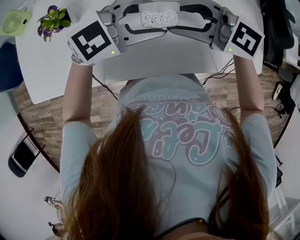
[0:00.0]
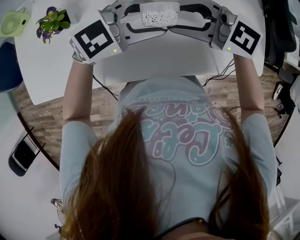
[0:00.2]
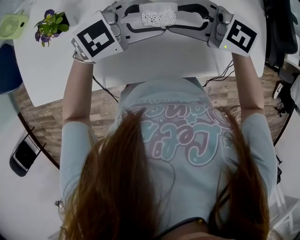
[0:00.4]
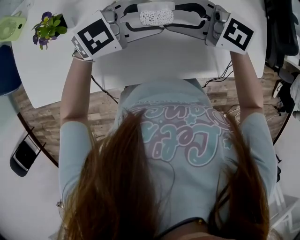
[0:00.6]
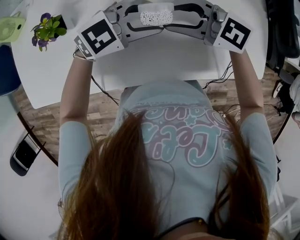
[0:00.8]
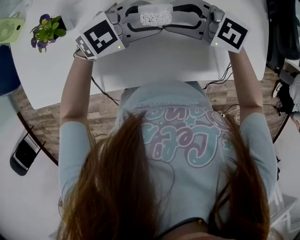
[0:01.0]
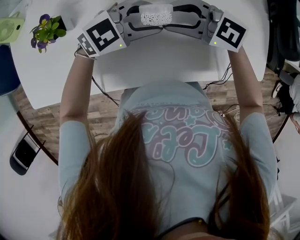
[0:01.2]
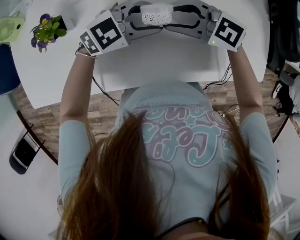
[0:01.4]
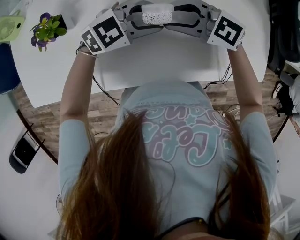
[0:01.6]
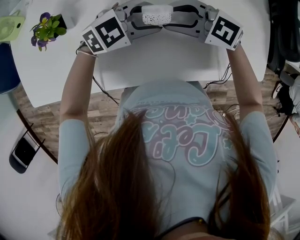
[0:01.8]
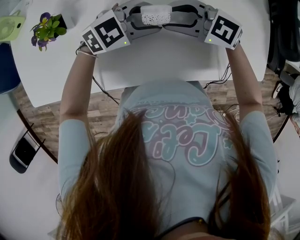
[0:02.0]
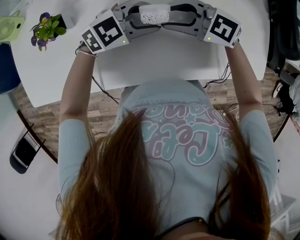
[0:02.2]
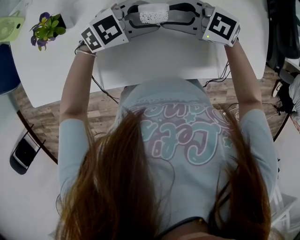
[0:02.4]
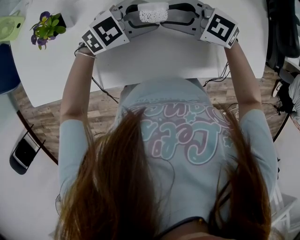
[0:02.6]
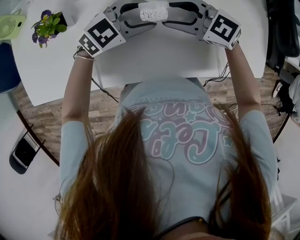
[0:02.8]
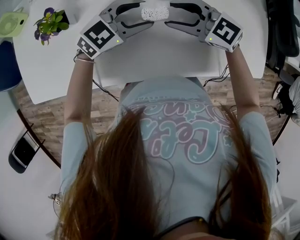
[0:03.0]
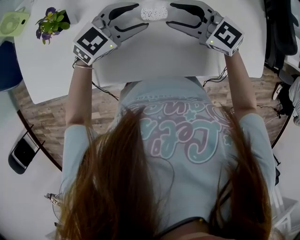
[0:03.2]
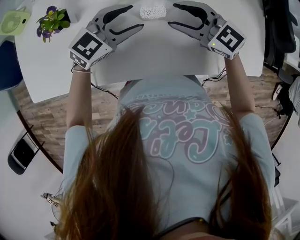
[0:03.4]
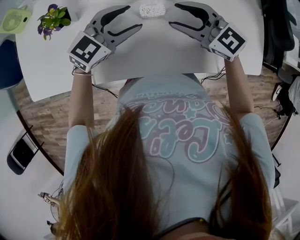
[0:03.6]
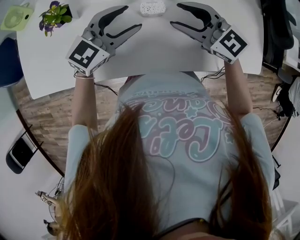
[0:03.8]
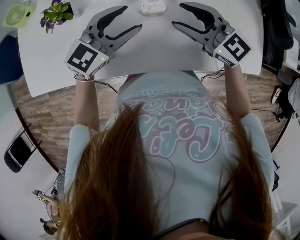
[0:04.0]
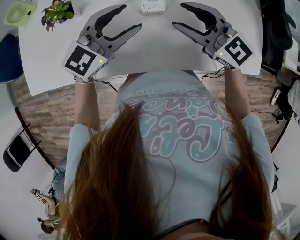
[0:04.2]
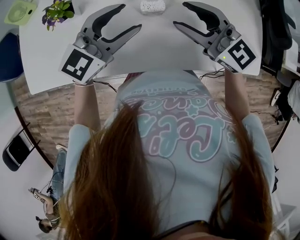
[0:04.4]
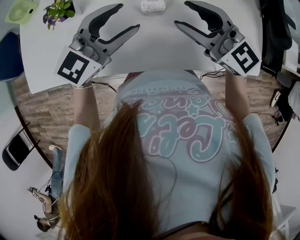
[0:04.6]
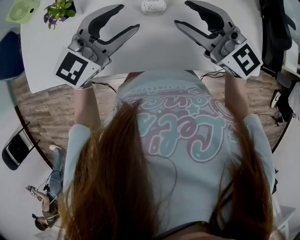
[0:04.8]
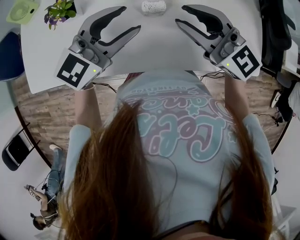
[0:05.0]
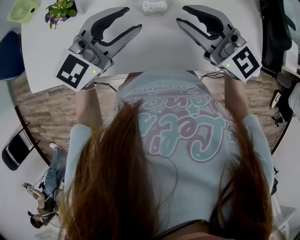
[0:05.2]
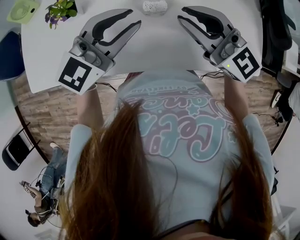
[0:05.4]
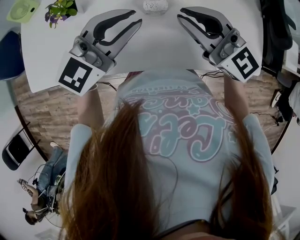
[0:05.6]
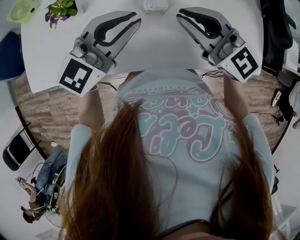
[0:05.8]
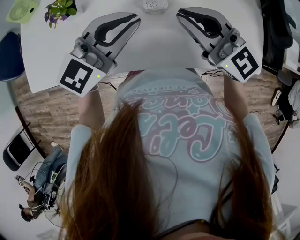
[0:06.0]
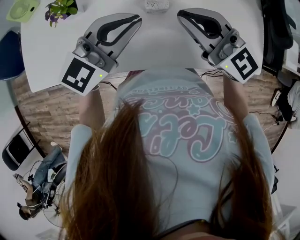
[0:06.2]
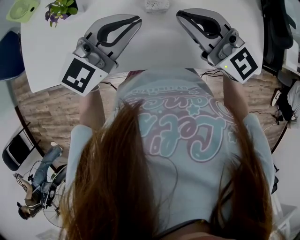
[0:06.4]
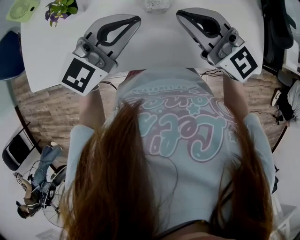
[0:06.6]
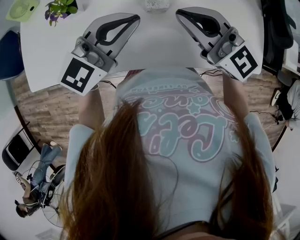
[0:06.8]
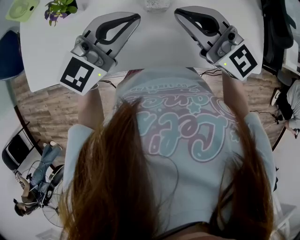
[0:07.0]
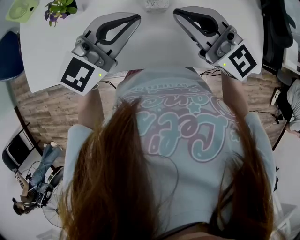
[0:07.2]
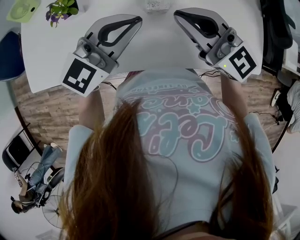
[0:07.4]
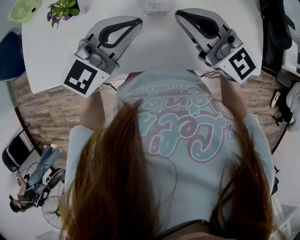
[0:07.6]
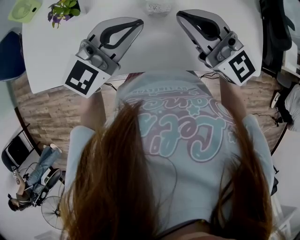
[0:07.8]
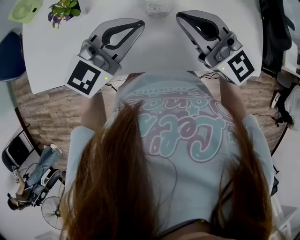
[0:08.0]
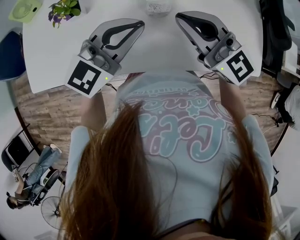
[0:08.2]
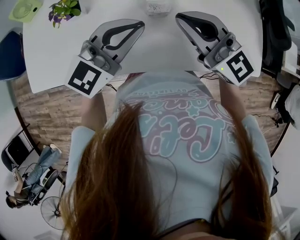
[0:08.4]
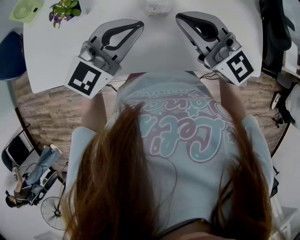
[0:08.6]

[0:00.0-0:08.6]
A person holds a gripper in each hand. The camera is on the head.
0:00.0 to 0:01.4: The two grippers go about 5 cm downward.
0:01.4 to 0:02.8: The grippers make only small movements.
0:02.8 to 0:04.4: The two grippers go about 10 cm upward. The left gripper swivels some 30 degrees. The right gripper rotates some 20 degrees.
0:04.4 to 0:05.8: The left gripper closes its fingers. Meanwhile the right gripper closes up.
0:05.8 to 0:07.2: The two grippers keep their place.
0:07.2 to 0:08.6: Both grippers stay about where they are.

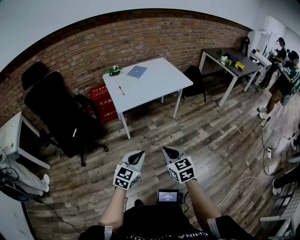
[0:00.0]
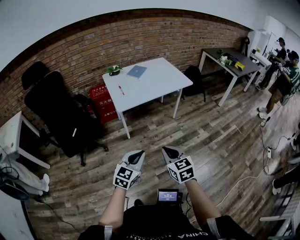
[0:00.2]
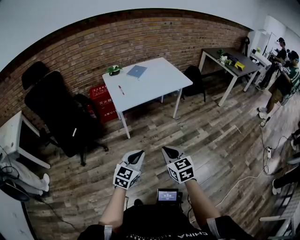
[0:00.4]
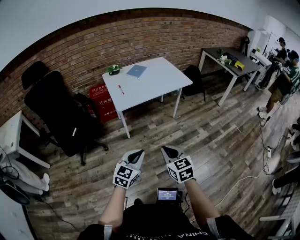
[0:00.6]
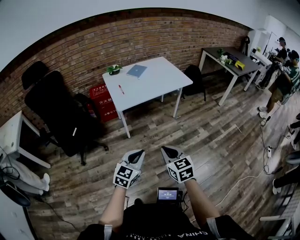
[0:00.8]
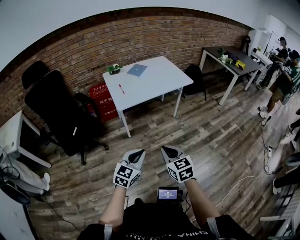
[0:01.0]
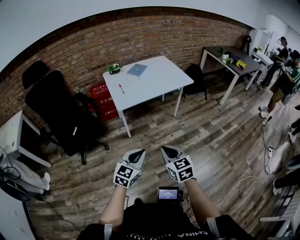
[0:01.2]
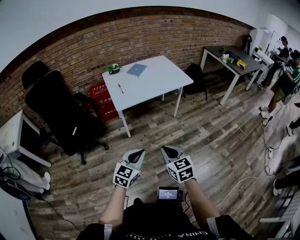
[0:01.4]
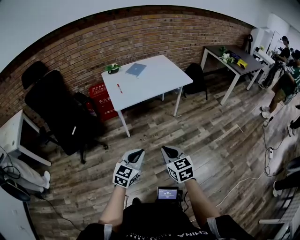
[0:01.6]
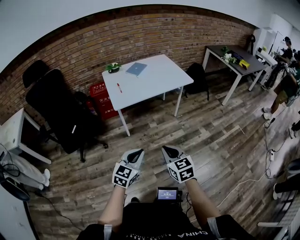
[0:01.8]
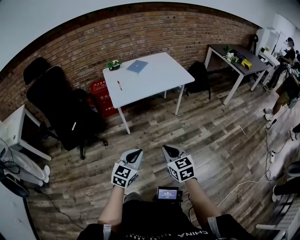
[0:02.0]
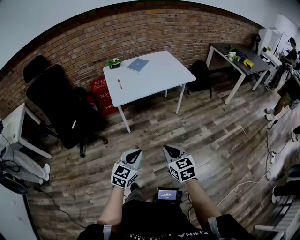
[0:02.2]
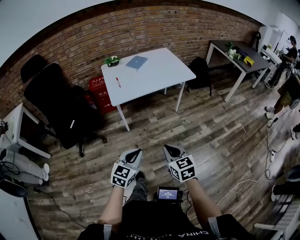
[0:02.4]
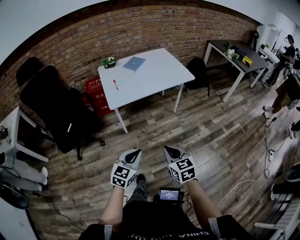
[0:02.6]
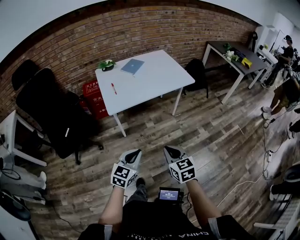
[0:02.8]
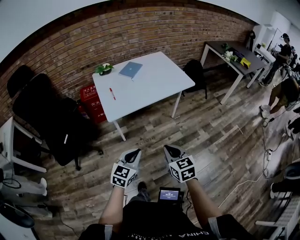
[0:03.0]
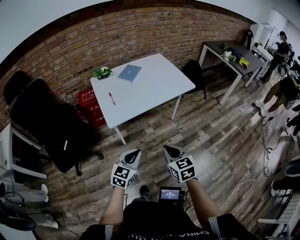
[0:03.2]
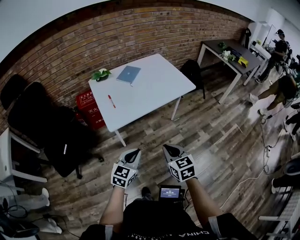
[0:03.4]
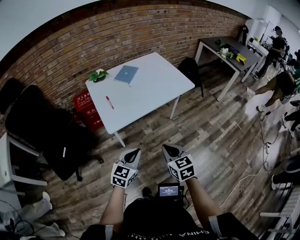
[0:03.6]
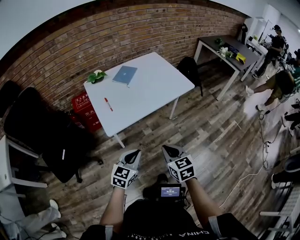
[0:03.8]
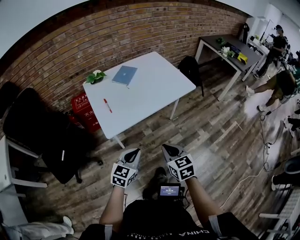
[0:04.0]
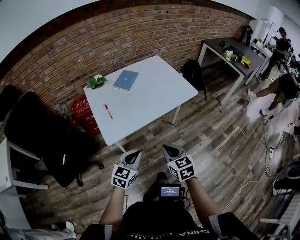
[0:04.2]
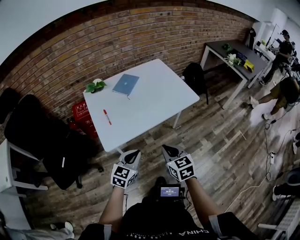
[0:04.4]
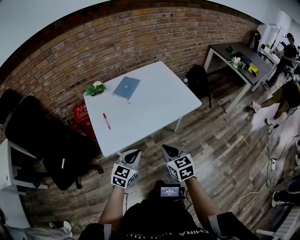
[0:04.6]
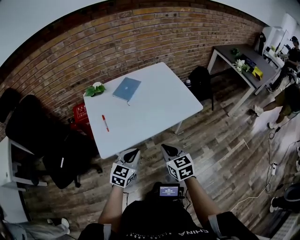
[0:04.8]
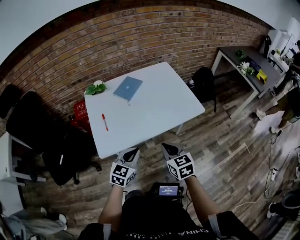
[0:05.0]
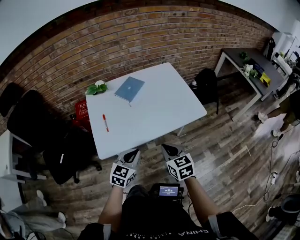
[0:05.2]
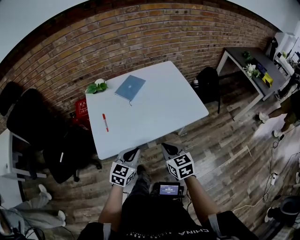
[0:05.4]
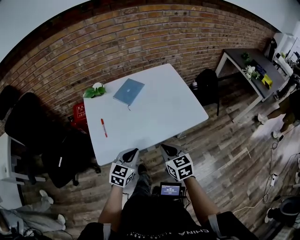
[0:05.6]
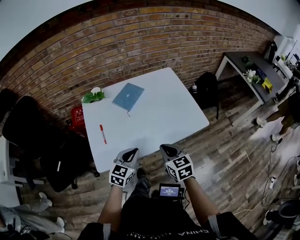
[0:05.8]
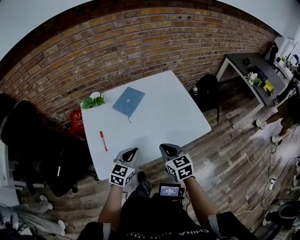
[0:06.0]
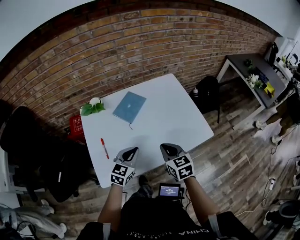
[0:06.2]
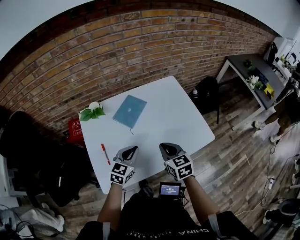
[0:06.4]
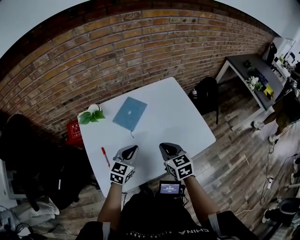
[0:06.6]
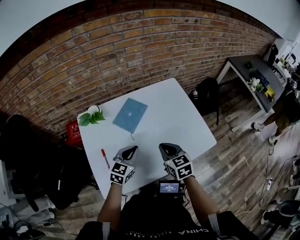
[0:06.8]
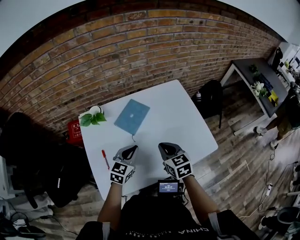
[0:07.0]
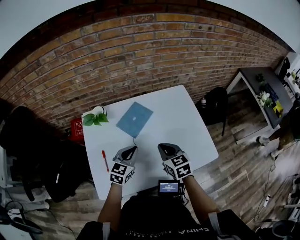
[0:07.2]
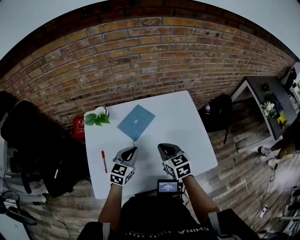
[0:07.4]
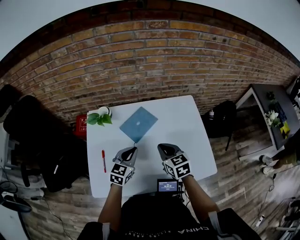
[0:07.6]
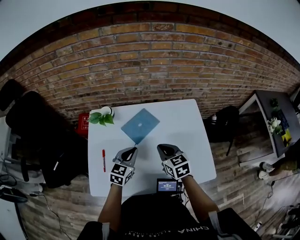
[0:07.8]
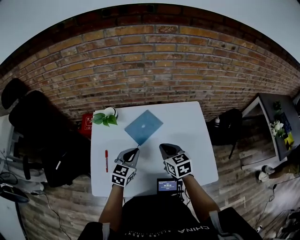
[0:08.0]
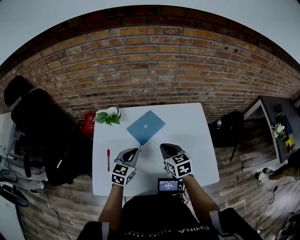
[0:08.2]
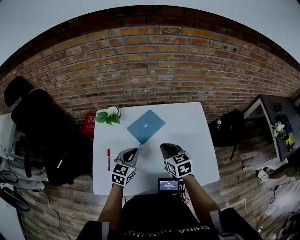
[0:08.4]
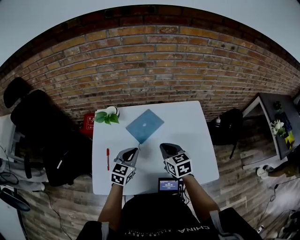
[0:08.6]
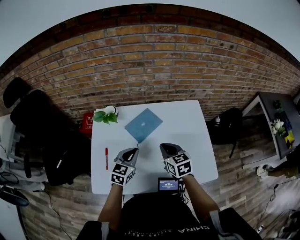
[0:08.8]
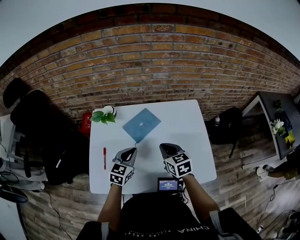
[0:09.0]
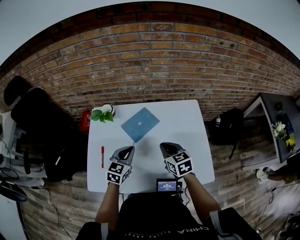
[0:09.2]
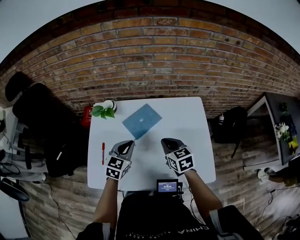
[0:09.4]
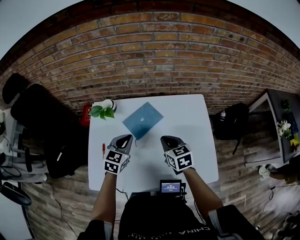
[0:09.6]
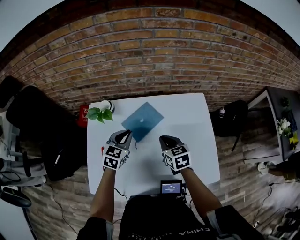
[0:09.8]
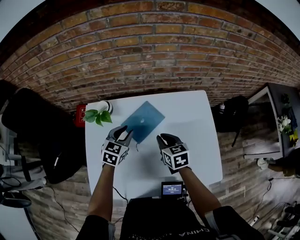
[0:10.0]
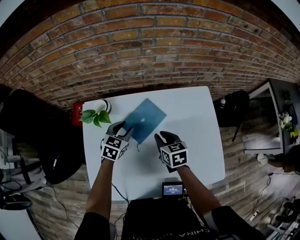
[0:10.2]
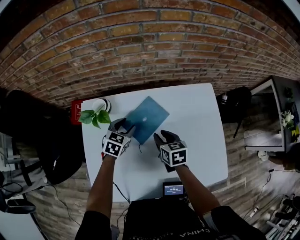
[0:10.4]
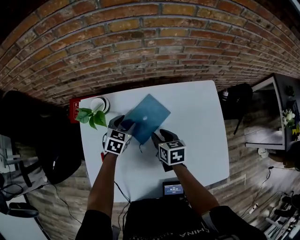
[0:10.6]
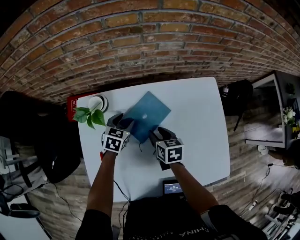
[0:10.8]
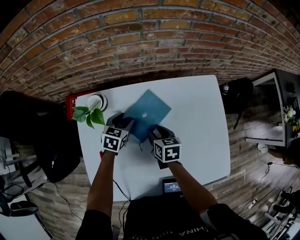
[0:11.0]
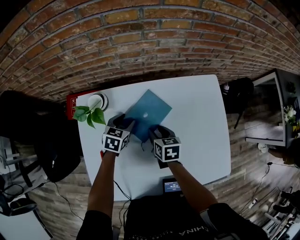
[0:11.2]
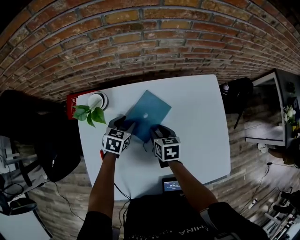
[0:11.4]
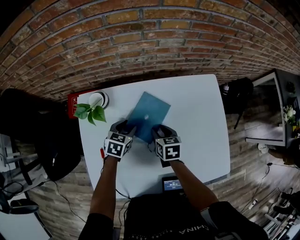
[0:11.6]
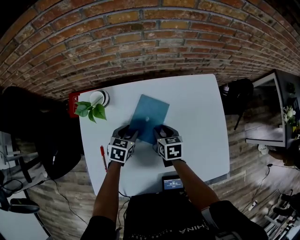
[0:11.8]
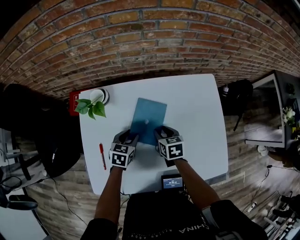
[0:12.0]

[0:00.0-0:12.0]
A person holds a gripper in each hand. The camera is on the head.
0:00.0 to 0:01.6: The grippers make only small movements.
0:01.6 to 0:03.0: Both grippers move forward, roughly 15 cm.
0:03.0 to 0:04.4: Both grippers travel together forward, roughly 20 cm.
0:04.4 to 0:06.0: Both grippers travel together forward, roughly 25 cm.
0:06.0 to 0:07.6: The two grippers go roughly 20 cm forward.
0:07.6 to 0:09.0: The grippers stay close to where they were, moving slightly.
0:09.0 to 0:10.4: The grippers both shift forward and downward by approximately 20 cm. The right gripper swivels approximately 20 degrees, and opens. Meanwhile the left gripper opens up.
0:10.4 to 0:12.0: The right gripper shifts by about 5 cm, while the left gripper moves backward, about 10 cm.

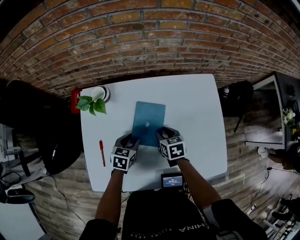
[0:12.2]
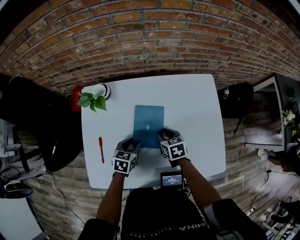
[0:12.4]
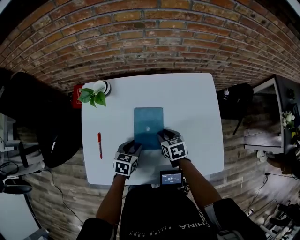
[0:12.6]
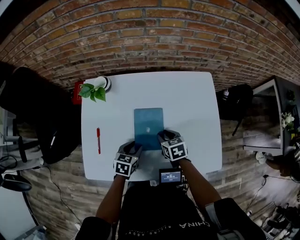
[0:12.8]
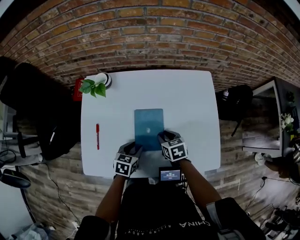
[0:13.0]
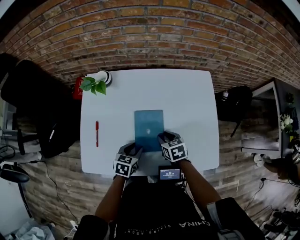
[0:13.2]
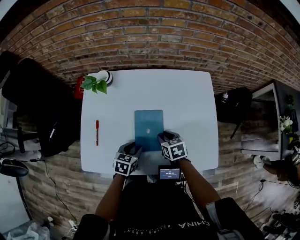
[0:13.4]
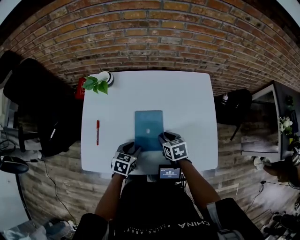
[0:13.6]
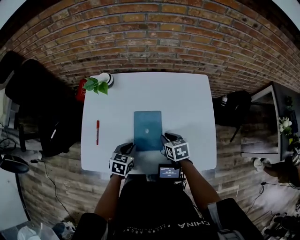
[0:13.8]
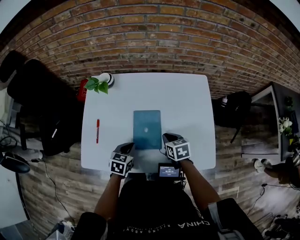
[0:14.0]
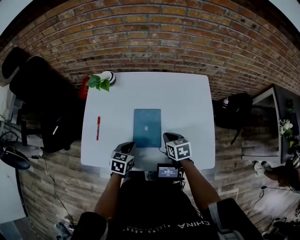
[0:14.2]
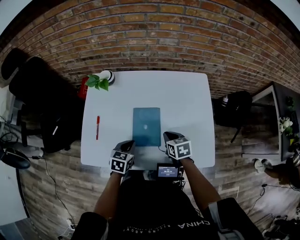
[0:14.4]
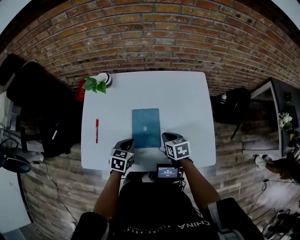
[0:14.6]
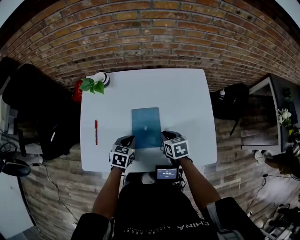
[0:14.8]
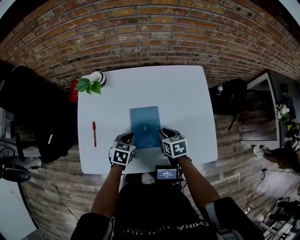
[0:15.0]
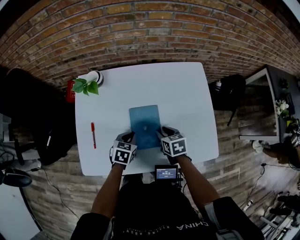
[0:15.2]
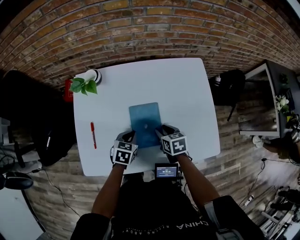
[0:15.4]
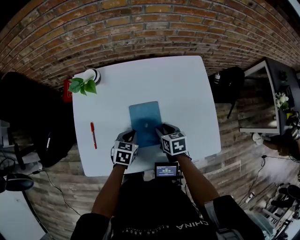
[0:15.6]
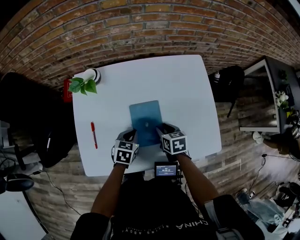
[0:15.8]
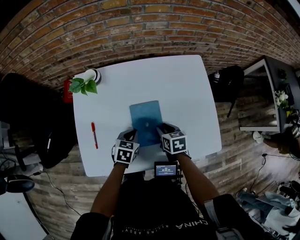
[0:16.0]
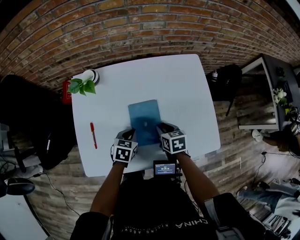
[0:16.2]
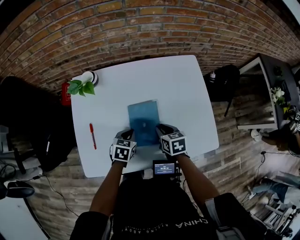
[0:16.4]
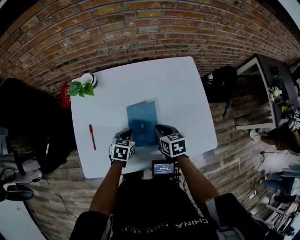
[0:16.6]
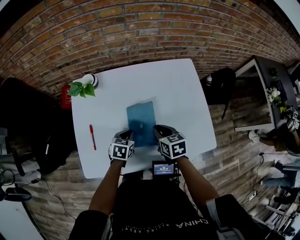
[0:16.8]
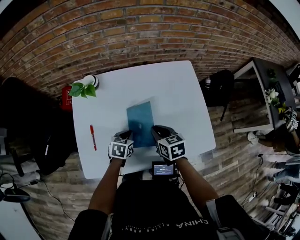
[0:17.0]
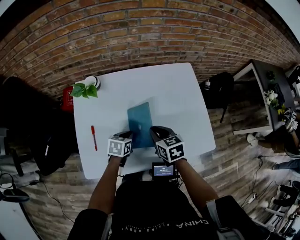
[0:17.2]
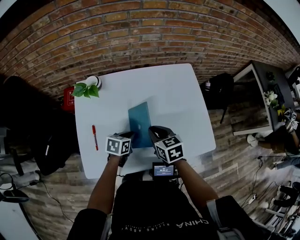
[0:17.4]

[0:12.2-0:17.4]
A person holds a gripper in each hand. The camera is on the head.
0:12.2 to 0:14.0: The left gripper travels backward by approximately 15 cm, and closes its fingers. The right gripper travels backward and to the right by some 15 cm, and closes its fingers.
0:14.0 to 0:15.6: The right gripper opens its fingers; the left gripper is displaced forward by roughly 5 cm.
0:15.6 to 0:17.4: The right gripper is displaced upward by roughly 10 cm, and closes its fingers.
